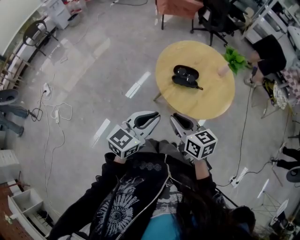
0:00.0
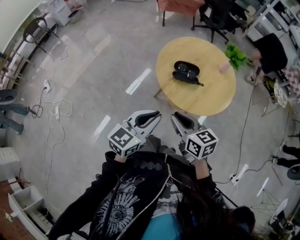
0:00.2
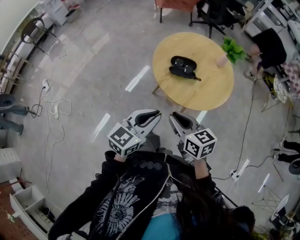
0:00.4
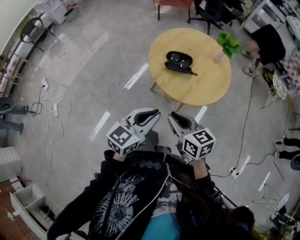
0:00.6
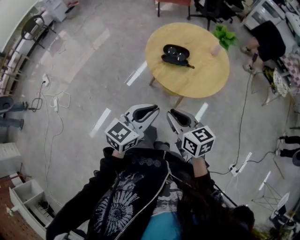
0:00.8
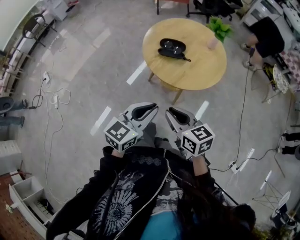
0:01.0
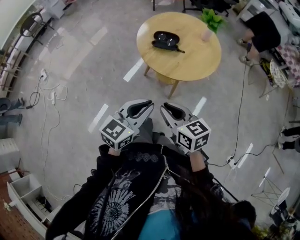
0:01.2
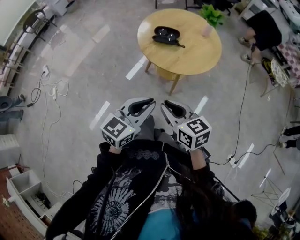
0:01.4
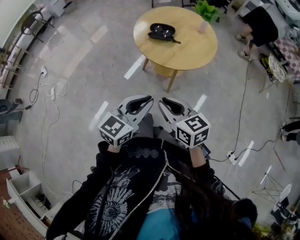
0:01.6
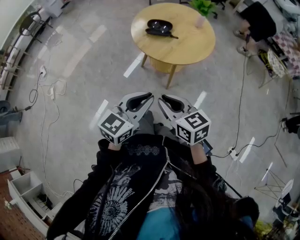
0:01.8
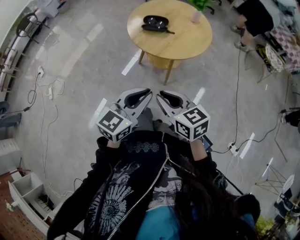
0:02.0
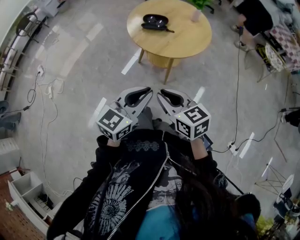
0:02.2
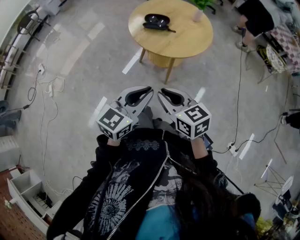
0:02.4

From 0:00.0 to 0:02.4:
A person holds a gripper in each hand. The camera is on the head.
From 0:00.0 to 0:01.2: Both grippers travel together backward and to the right, about 20 cm.
From 0:01.2 to 0:02.4: Both grippers move backward, about 10 cm.

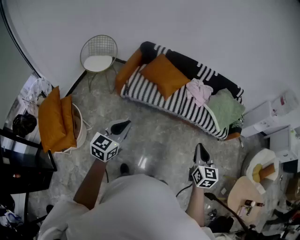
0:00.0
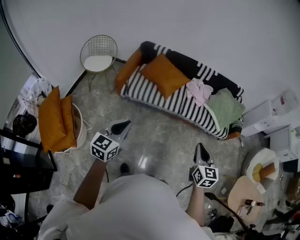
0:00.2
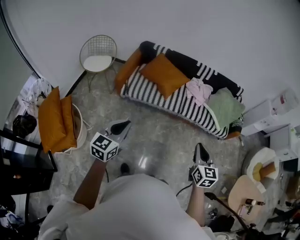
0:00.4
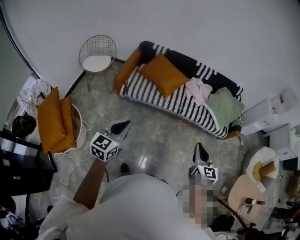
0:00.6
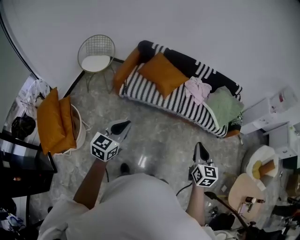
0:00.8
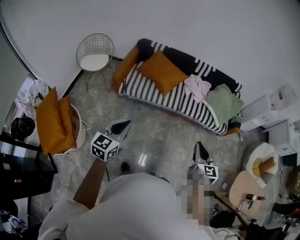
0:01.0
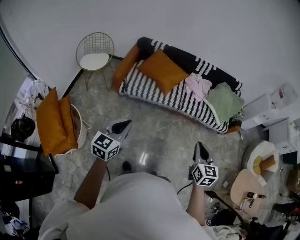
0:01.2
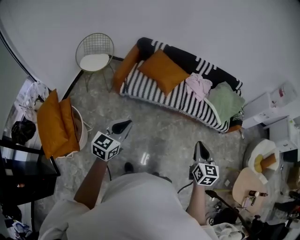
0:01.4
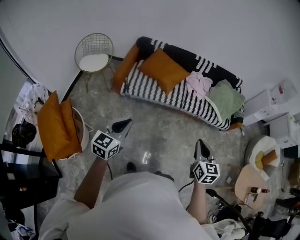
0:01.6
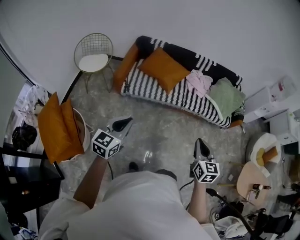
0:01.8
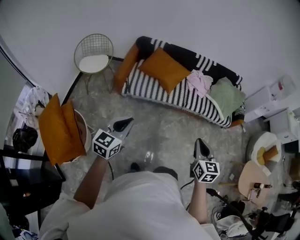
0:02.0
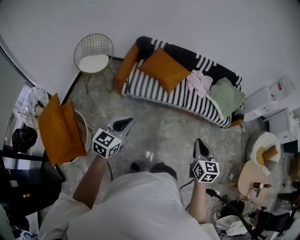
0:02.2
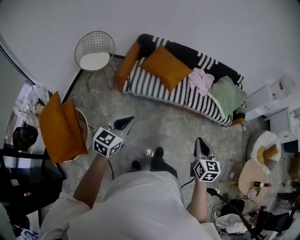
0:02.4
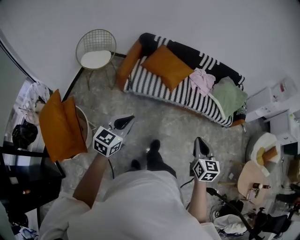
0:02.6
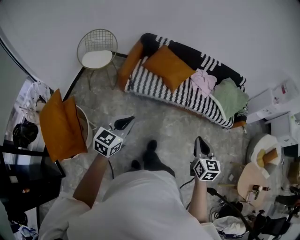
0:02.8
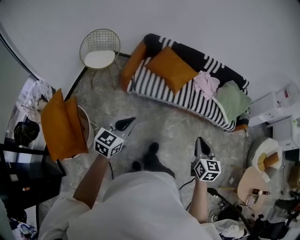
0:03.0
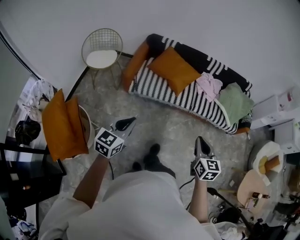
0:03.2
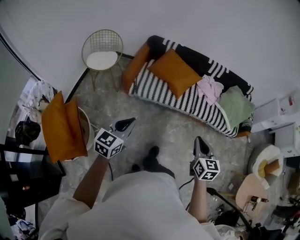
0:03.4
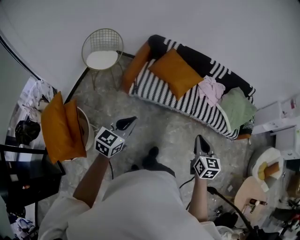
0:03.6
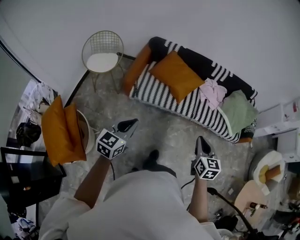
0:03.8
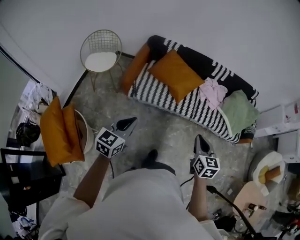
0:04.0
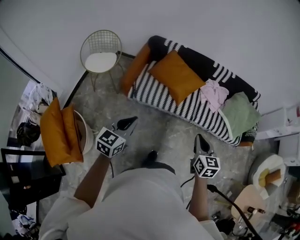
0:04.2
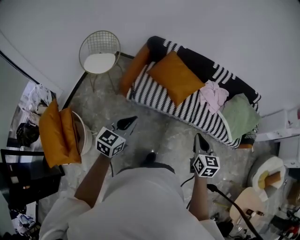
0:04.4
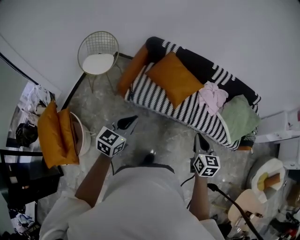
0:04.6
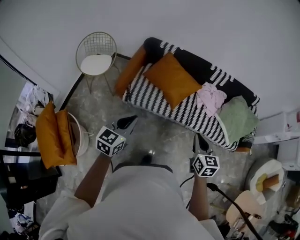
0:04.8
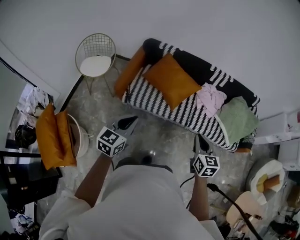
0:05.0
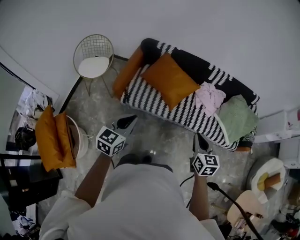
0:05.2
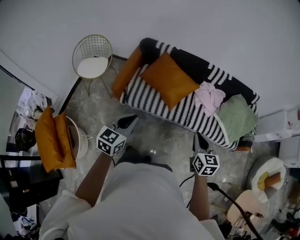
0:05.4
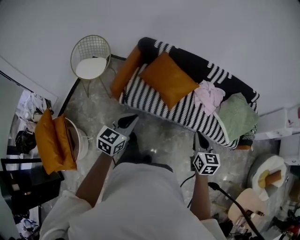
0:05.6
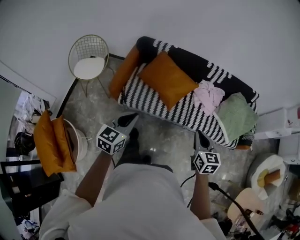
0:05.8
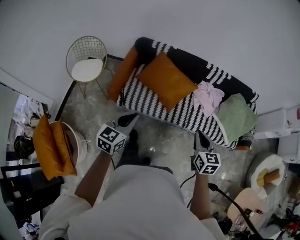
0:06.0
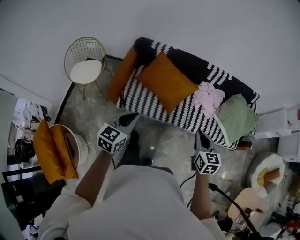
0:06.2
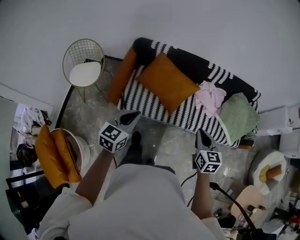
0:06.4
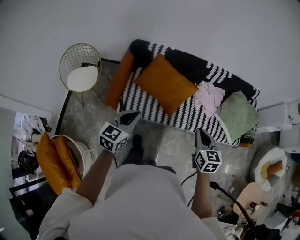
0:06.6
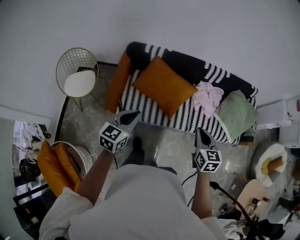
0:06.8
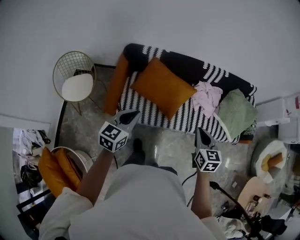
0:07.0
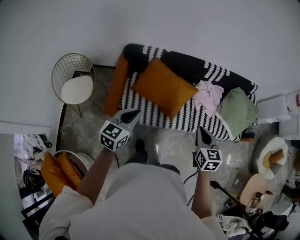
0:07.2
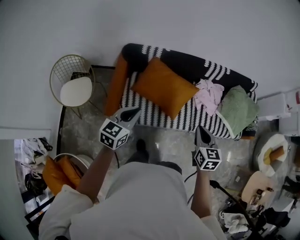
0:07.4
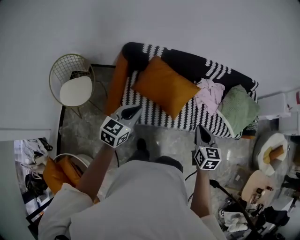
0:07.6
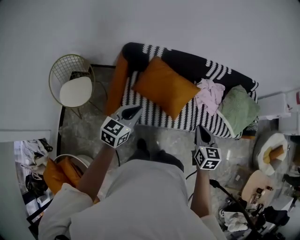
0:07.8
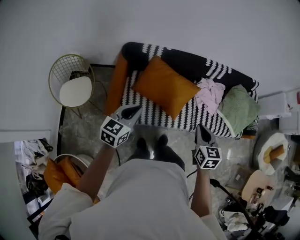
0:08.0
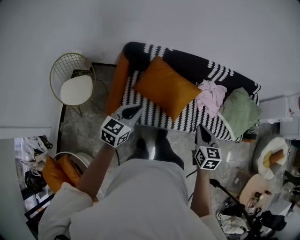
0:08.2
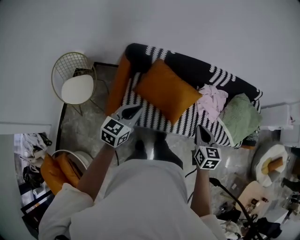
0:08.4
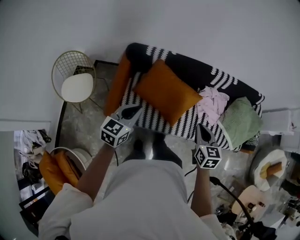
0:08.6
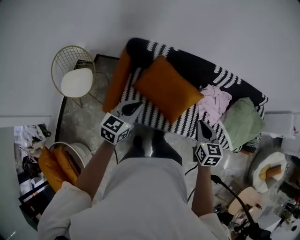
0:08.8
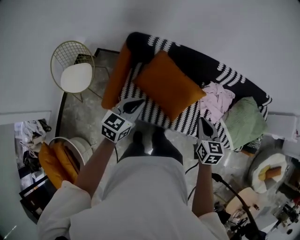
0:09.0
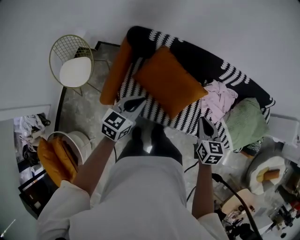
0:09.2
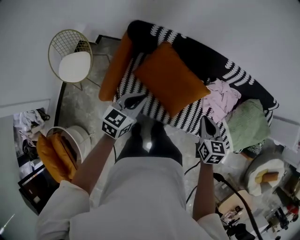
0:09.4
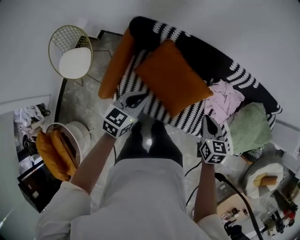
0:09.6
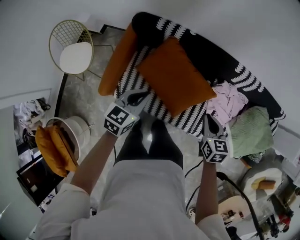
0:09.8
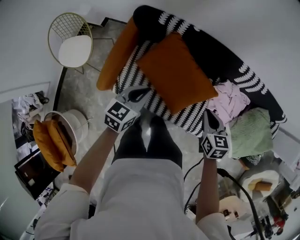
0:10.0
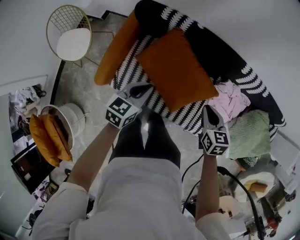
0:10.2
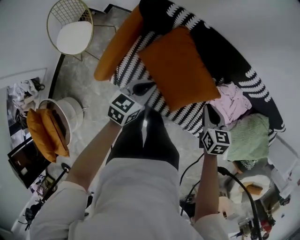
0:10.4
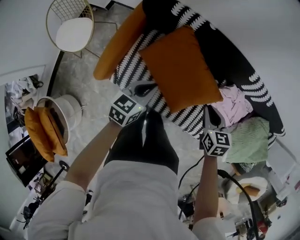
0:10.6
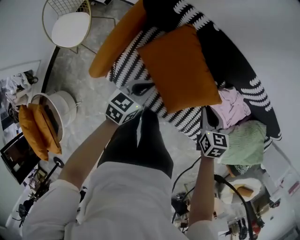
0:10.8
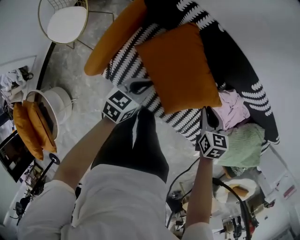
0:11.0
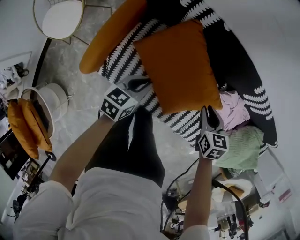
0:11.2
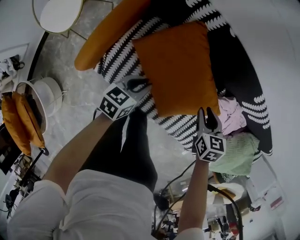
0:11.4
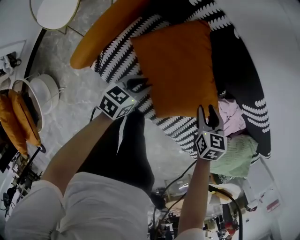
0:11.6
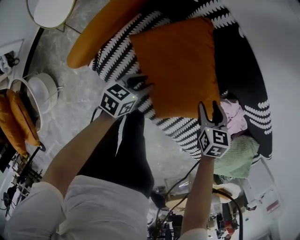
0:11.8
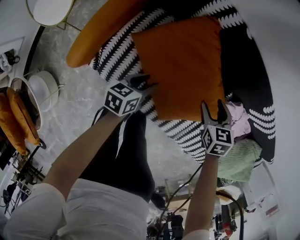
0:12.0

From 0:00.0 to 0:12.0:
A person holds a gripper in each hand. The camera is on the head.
From 0:00.0 to 0:01.6: Both grippers travel together to the left, some 5 cm.
From 0:01.6 to 0:03.0: The two grippers go approximately 5 cm to the left.
From 0:03.0 to 0:04.4: Both grippers move forward, approximately 25 cm.
From 0:04.4 to 0:06.0: The two grippers go approximately 15 cm forward.
From 0:06.0 to 0:07.6: The left gripper heads forward and to the left, covering roughly 30 cm; the right gripper shifts about 25 cm to the left and forward.
From 0:07.6 to 0:09.0: Both grippers move forward, approximately 15 cm.
From 0:09.0 to 0:10.4: The grippers both shift downward and forward by approximately 25 cm.
From 0:10.4 to 0:12.0: The right gripper moves downward and forward, roughly 25 cm, changes its angle by approximately 20 degrees, and opens up; the left gripper goes some 30 cm downward, rotates roughly 30 degrees, and opens its fingers.

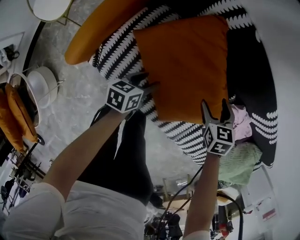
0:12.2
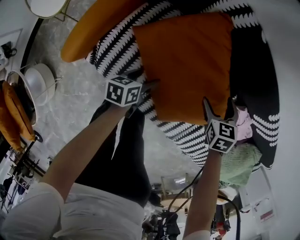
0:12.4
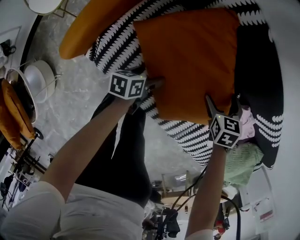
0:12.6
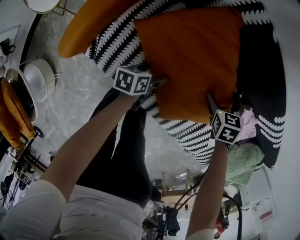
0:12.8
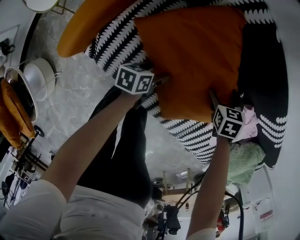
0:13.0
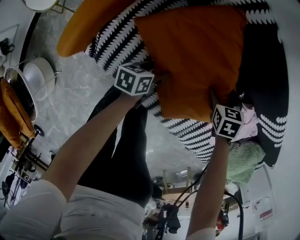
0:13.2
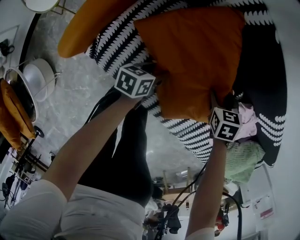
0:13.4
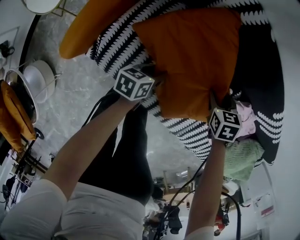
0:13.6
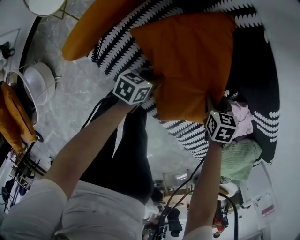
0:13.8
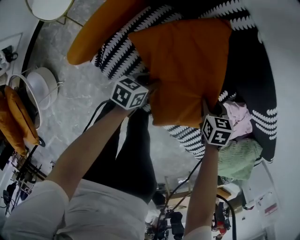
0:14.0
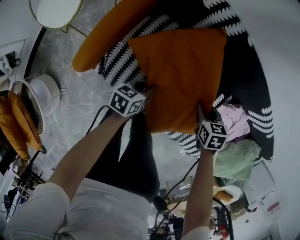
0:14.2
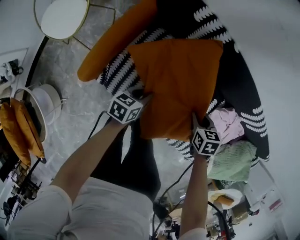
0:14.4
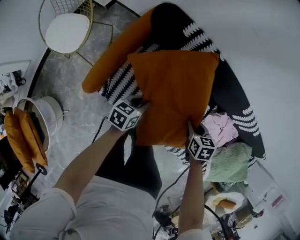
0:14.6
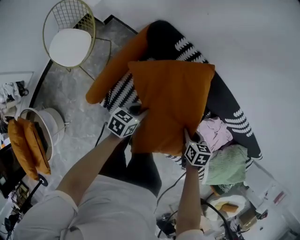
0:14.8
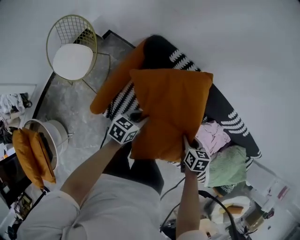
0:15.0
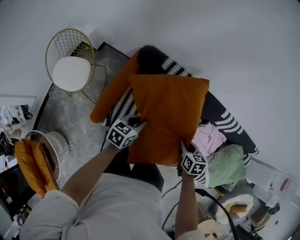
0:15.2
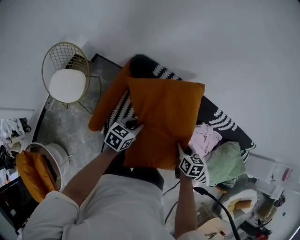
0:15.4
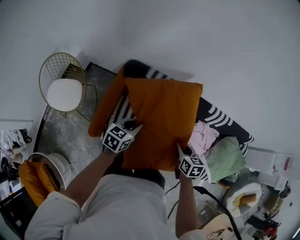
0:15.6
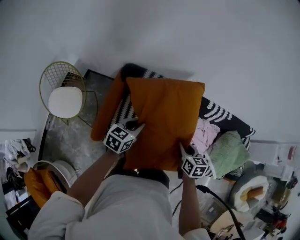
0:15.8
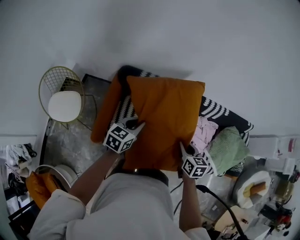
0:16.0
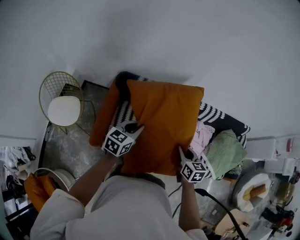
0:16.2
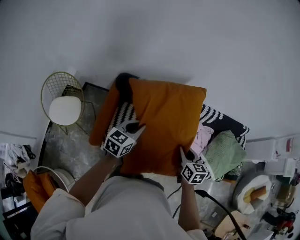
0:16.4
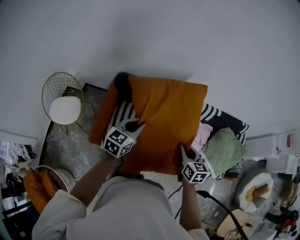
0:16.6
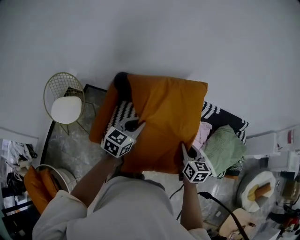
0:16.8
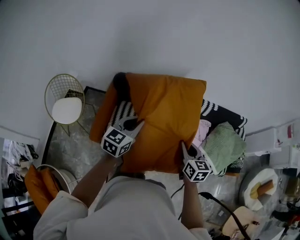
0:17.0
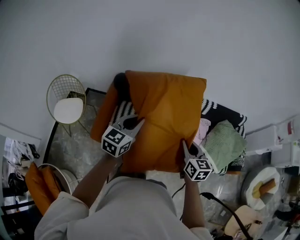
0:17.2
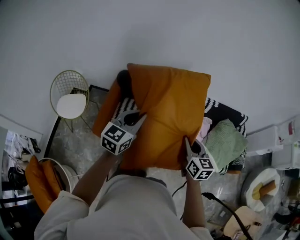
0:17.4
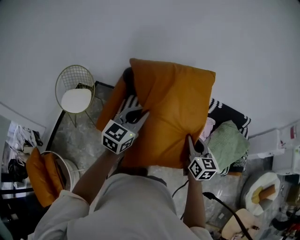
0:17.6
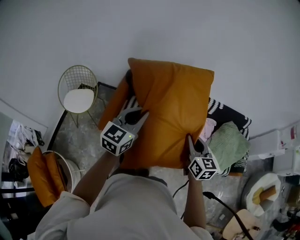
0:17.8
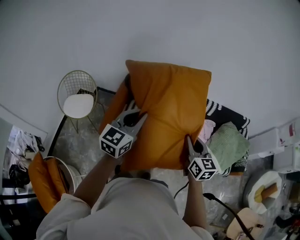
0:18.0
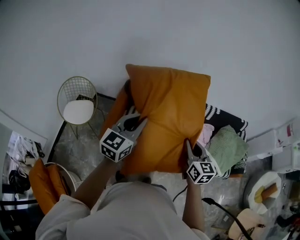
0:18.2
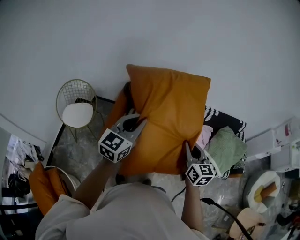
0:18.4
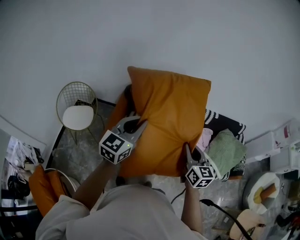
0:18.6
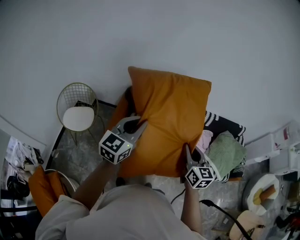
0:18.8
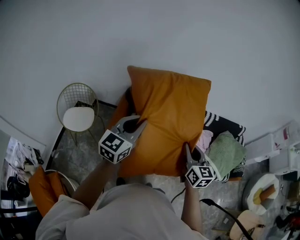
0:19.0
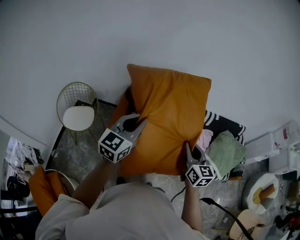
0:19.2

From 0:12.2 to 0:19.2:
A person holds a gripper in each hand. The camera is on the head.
From 0:12.2 to 0:13.6: Both grippers travel together downward, about 5 cm. The left gripper opens, then closes once more, while the right gripper closes its fingers.
From 0:13.6 to 0:15.0: Both grippers travel together upward, some 35 cm. The left gripper changes its angle by approximately 20 degrees. The right gripper swivels some 30 degrees.
From 0:15.0 to 0:16.4: The right gripper travels upward and backward by some 25 cm, and turns by some 30 degrees, while the left gripper shifts roughly 25 cm upward, and turns by approximately 30 degrees.
From 0:16.4 to 0:17.8: Both grippers travel together backward and upward, about 25 cm. The left gripper swivels approximately 20 degrees.
From 0:17.8 to 0:19.2: The two grippers go about 10 cm to the left and upward.

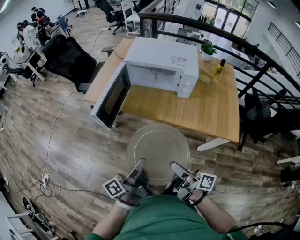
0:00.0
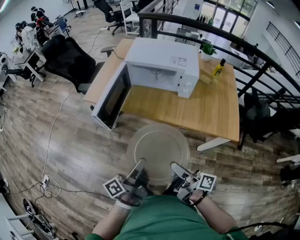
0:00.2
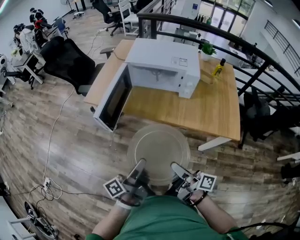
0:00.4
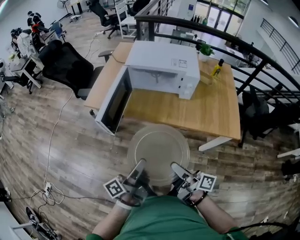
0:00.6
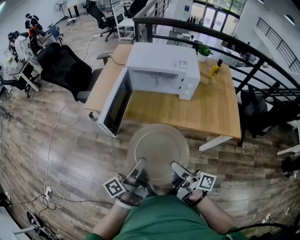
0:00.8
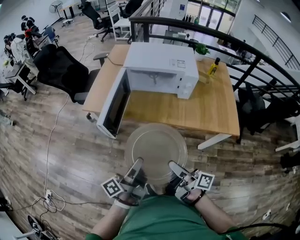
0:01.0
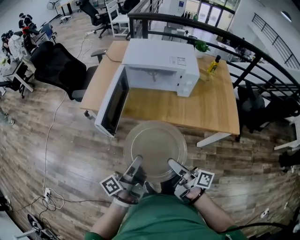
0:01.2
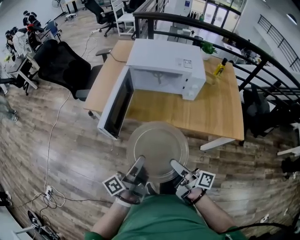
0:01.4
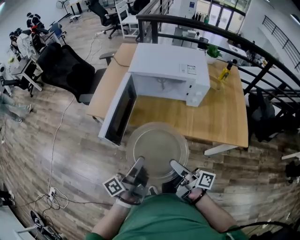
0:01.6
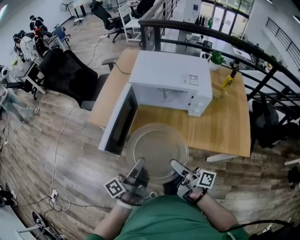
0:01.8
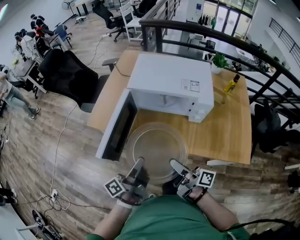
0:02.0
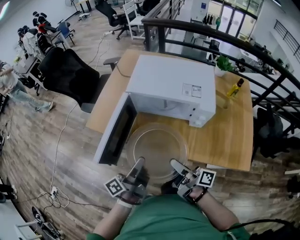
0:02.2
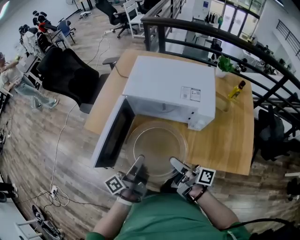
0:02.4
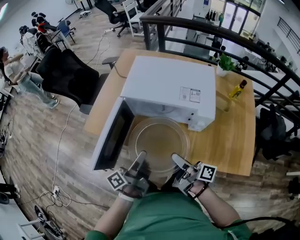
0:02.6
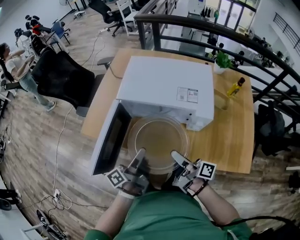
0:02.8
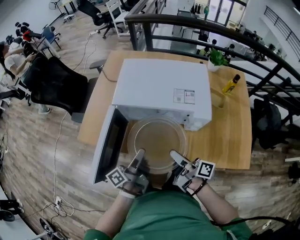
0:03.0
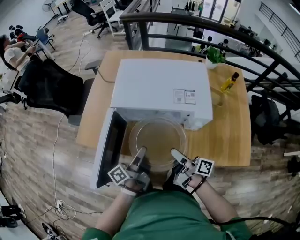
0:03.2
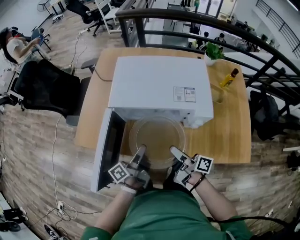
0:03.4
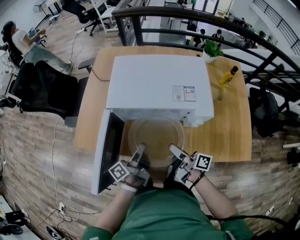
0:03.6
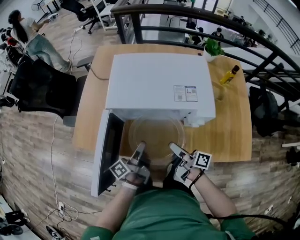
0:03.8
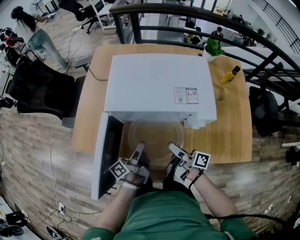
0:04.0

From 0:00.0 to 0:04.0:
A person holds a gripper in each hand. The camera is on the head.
From 0:00.0 to 0:01.4: The right gripper moves approximately 10 cm.
From 0:01.4 to 0:02.6: The right gripper shifts by roughly 25 cm.
From 0:02.6 to 0:04.0: The right gripper shifts by about 15 cm.
